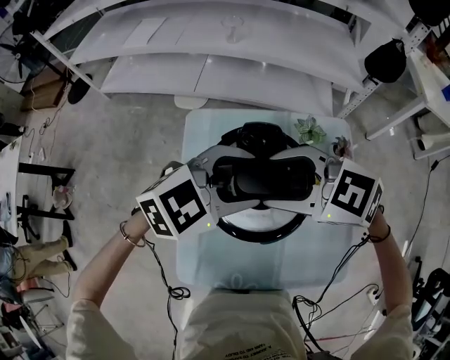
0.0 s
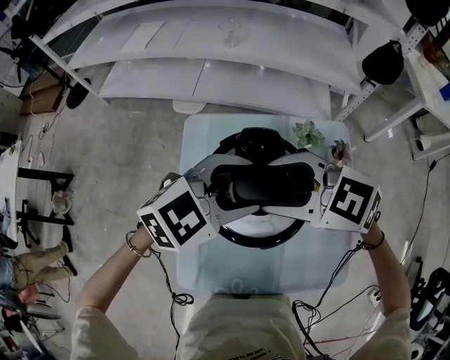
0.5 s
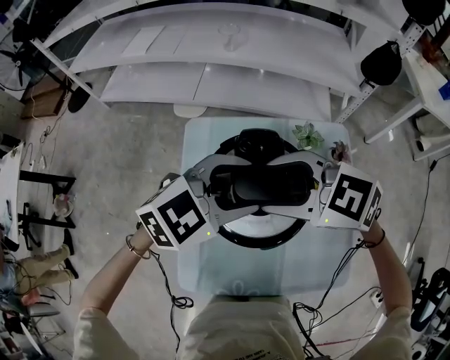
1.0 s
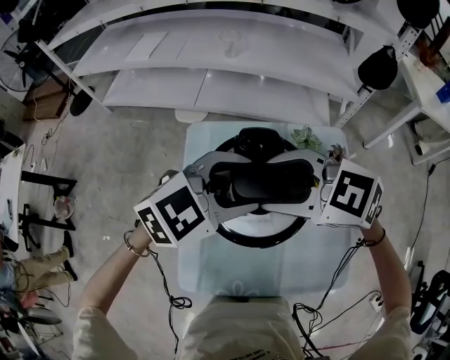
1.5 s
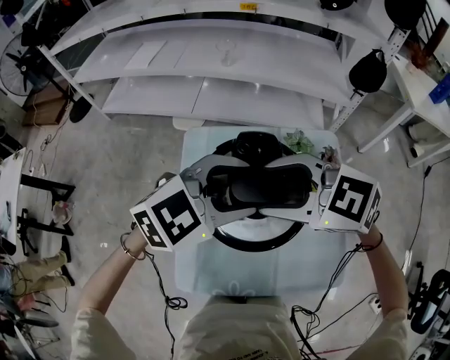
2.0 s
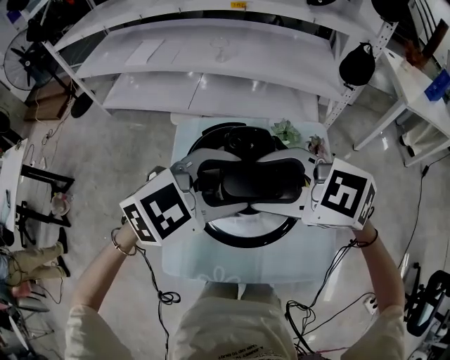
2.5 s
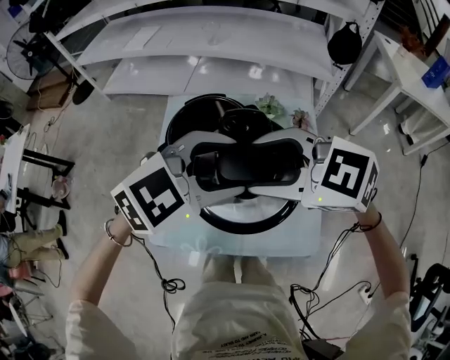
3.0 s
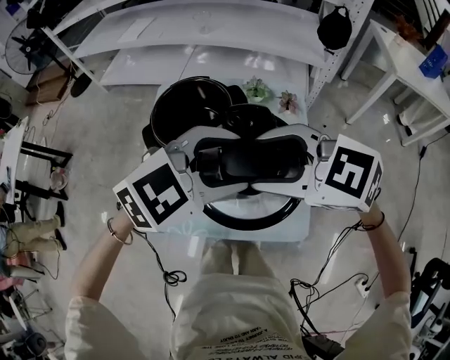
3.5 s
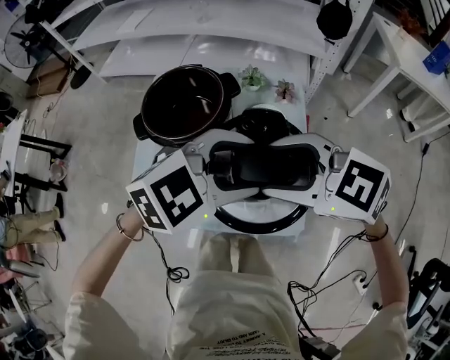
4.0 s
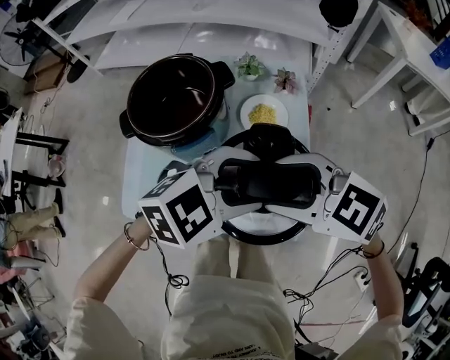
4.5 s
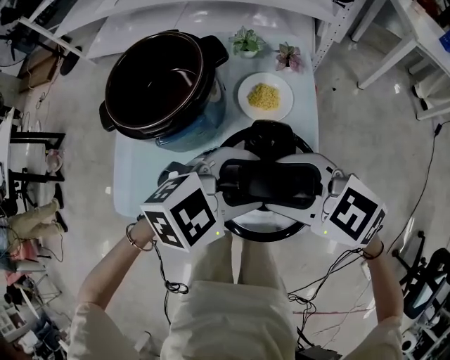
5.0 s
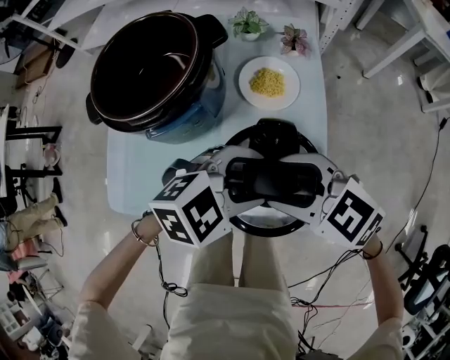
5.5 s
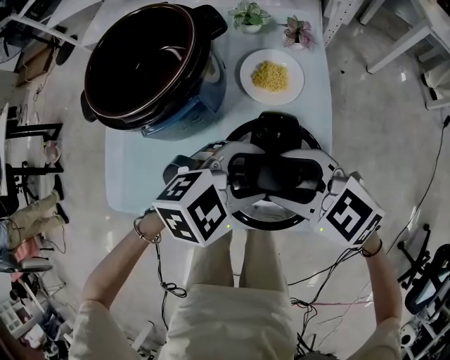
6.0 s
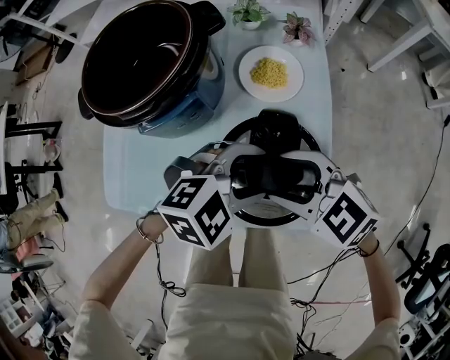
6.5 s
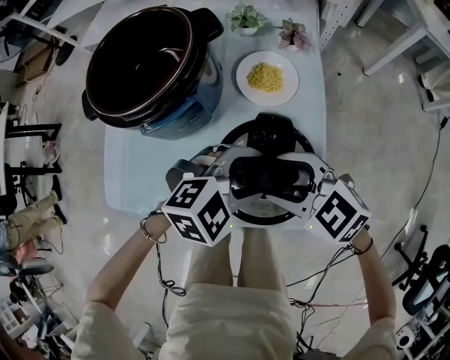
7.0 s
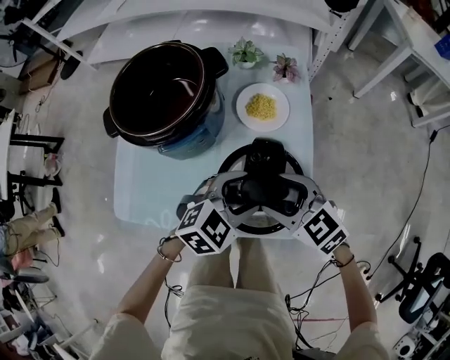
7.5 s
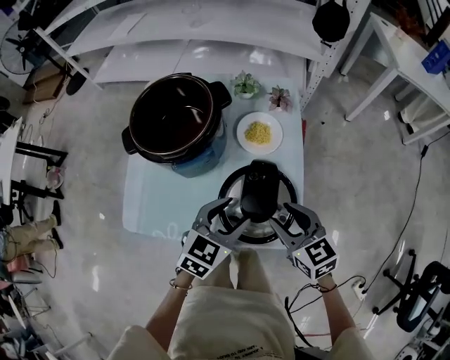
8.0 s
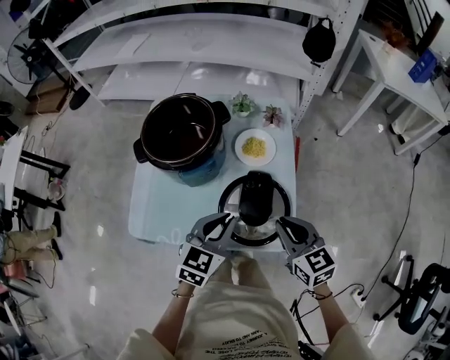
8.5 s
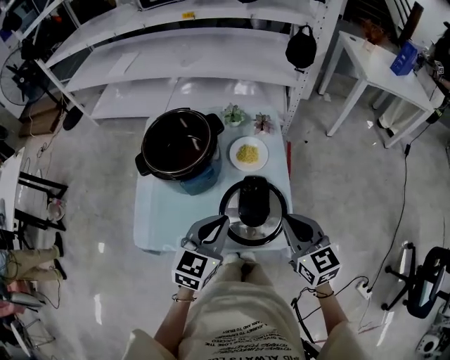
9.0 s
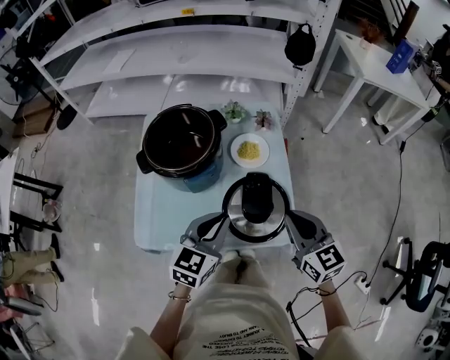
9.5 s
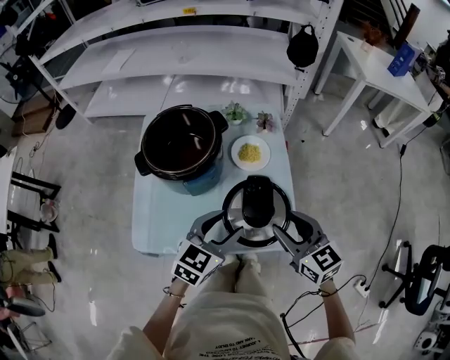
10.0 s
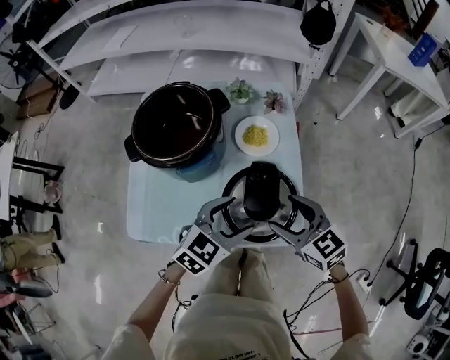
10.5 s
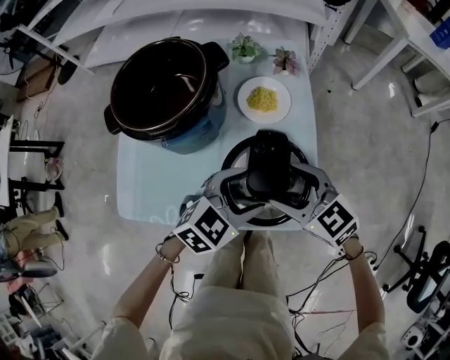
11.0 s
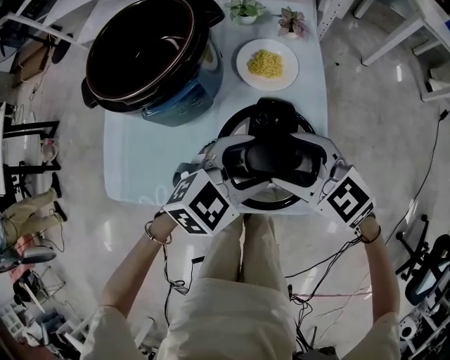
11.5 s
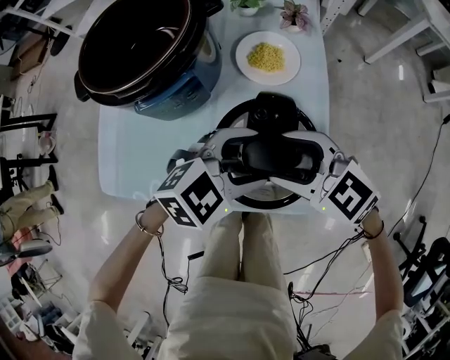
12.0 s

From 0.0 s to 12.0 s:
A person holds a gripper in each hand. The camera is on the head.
From 0.0 s to 2.0 s: The right gripper moves approximately 5 cm. The left gripper moves roughly 5 cm.
From 2.0 s to 4.0 s: The right gripper shifts by some 25 cm. The left gripper ends up some 25 cm from where it was.
From 4.0 s to 6.0 s: The grippers both shift downward by about 20 cm.
From 6.0 s to 8.0 s: The left gripper ends up roughly 5 cm from where it was, and turns by some 40 degrees. Meanwhile the right gripper changes place by some 5 cm, and turns by roughly 40 degrees.
From 8.0 s to 10.0 s: The grippers both shift upward by about 5 cm. The right gripper closes, then reopens, while the left gripper closes and opens again.
From 10.0 s to 12.0 s: Both grippers move downward, some 10 cm. The right gripper changes its angle by approximately 40 degrees, and opens; the left gripper rotates about 30 degrees.

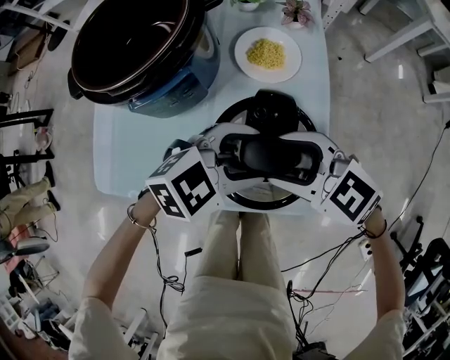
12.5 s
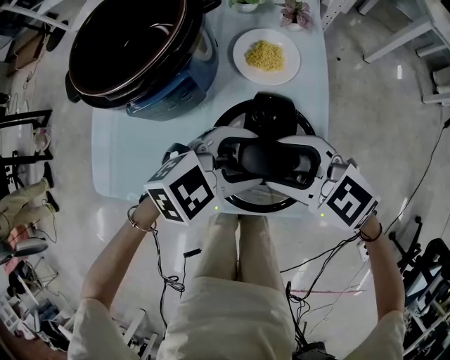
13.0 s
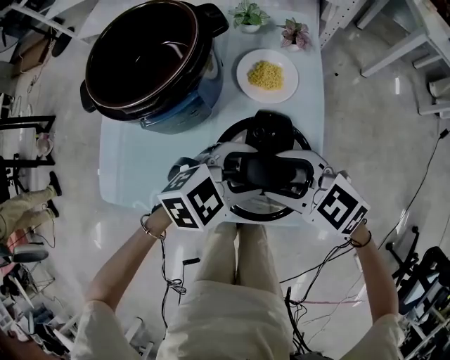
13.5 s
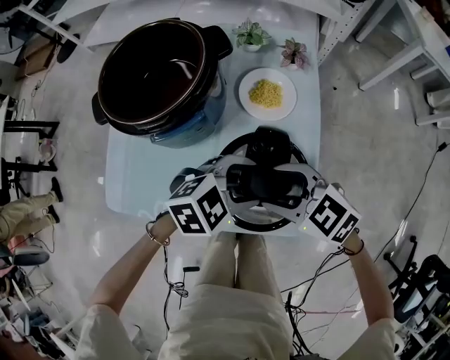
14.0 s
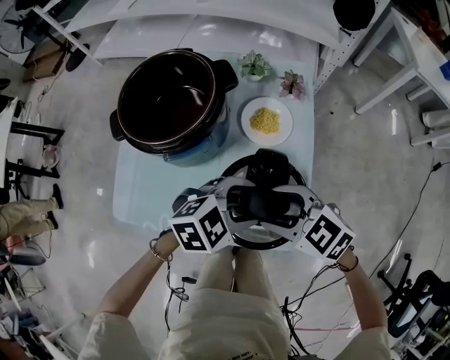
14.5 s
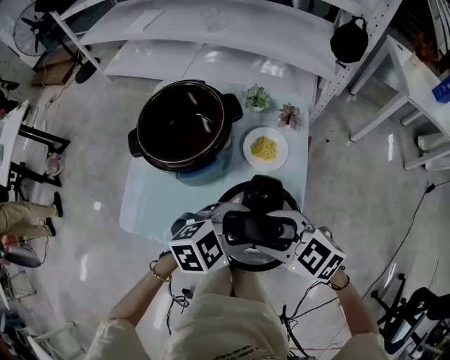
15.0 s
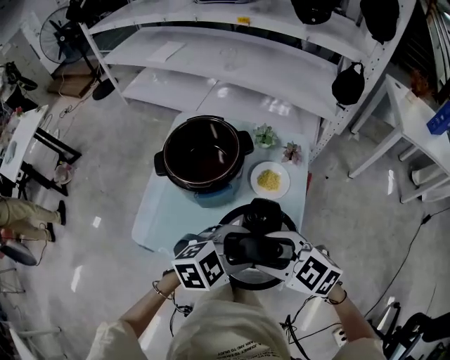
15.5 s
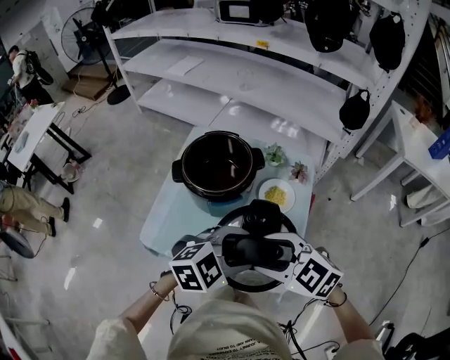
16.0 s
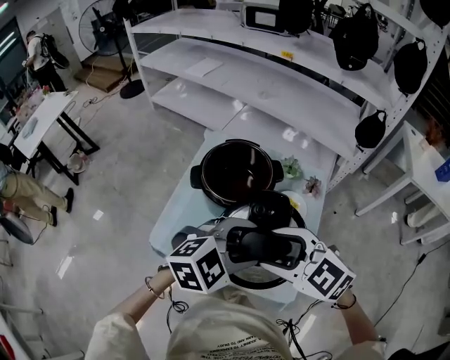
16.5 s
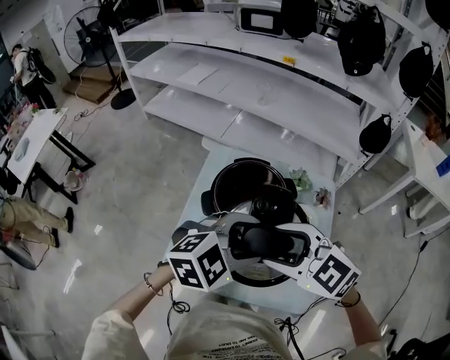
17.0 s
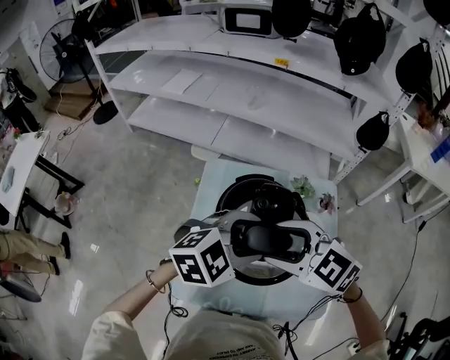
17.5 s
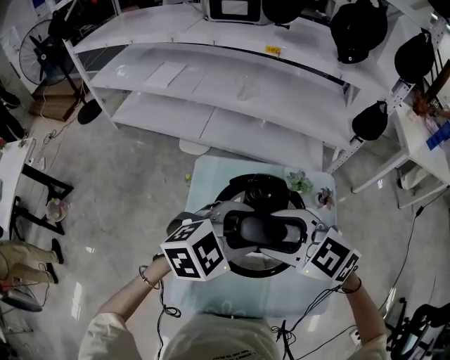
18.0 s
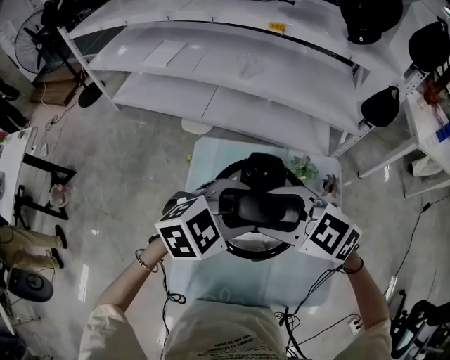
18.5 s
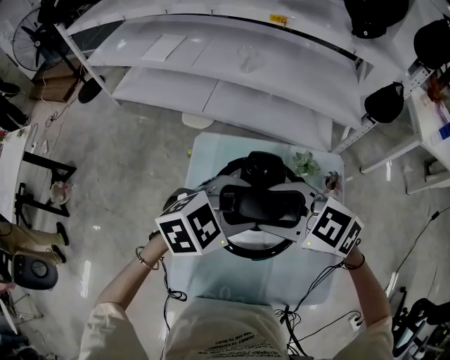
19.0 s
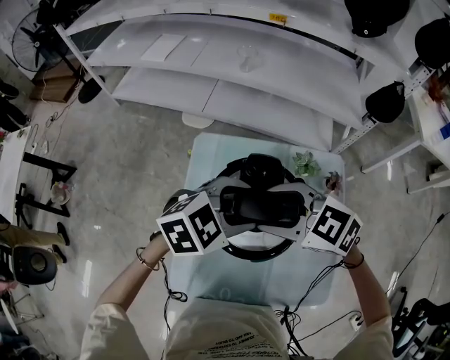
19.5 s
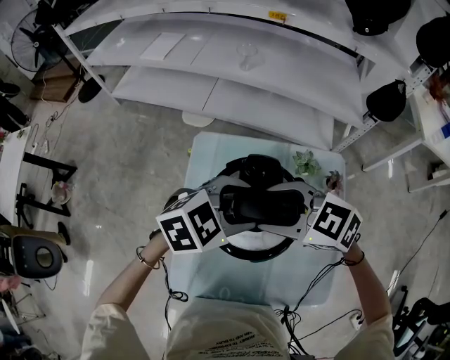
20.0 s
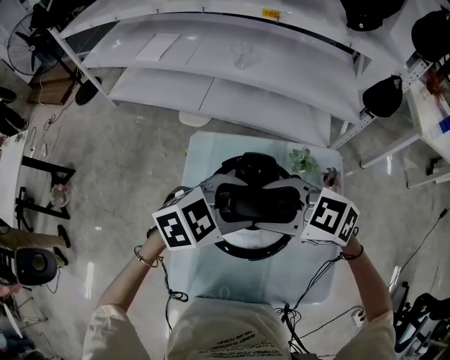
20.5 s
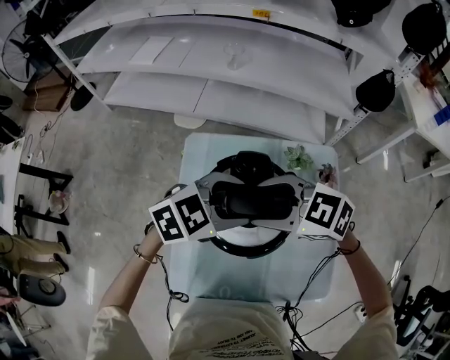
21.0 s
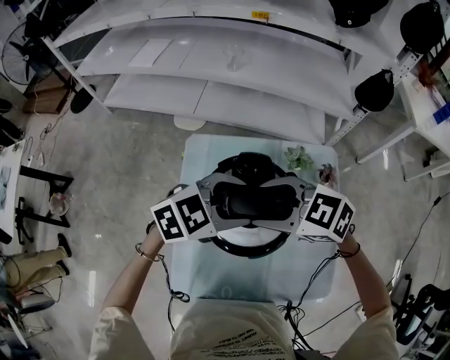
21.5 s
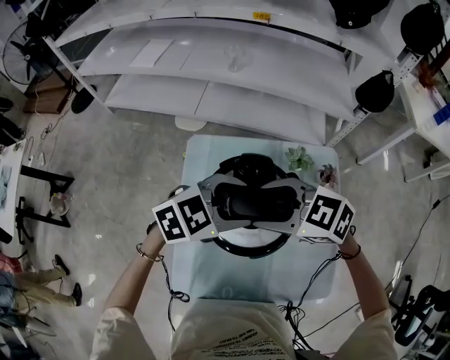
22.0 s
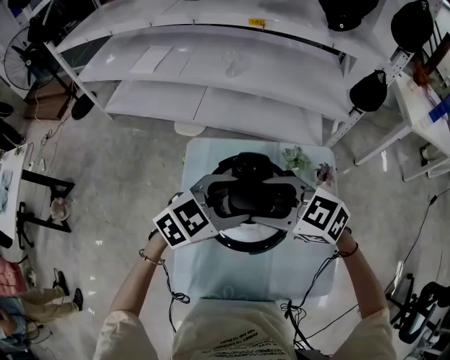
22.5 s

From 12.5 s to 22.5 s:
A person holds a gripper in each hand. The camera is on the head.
From 12.5 s to 14.5 s: The grippers stay close to where they were, moving slightly.
From 14.5 s to 16.5 s: The grippers both shift upward by some 20 cm. The right gripper changes its angle by some 20 degrees.
From 16.5 s to 18.5 s: The right gripper changes place by approximately 25 cm; the left gripper ends up about 25 cm from where it was.
From 18.5 s to 22.5 s: The grippers move only a little.

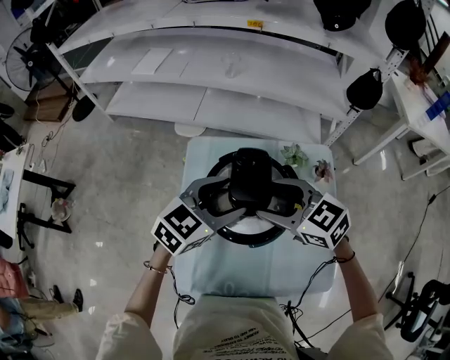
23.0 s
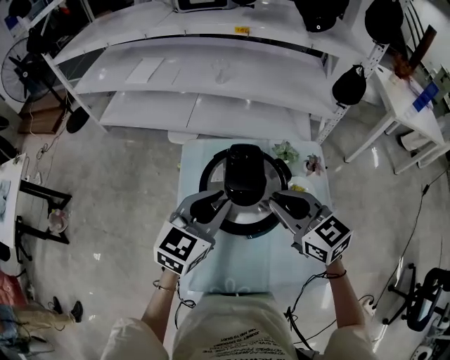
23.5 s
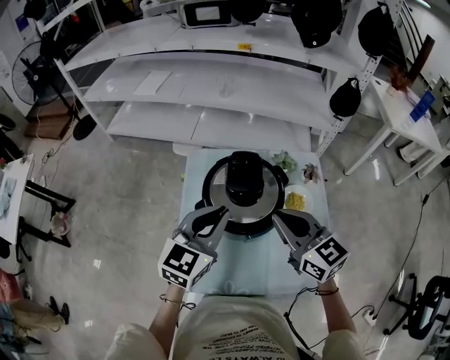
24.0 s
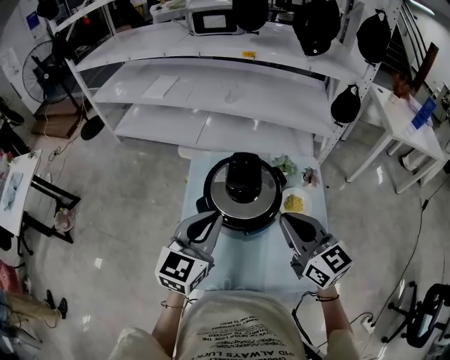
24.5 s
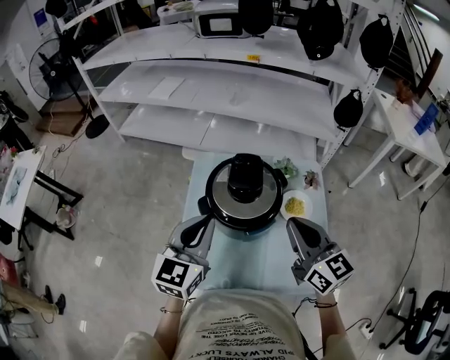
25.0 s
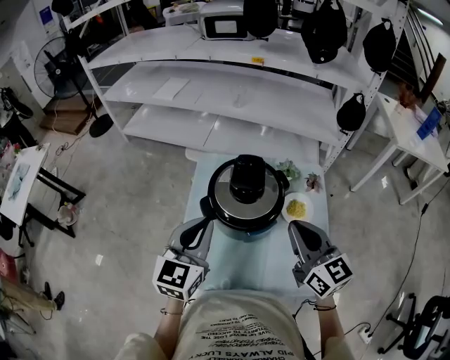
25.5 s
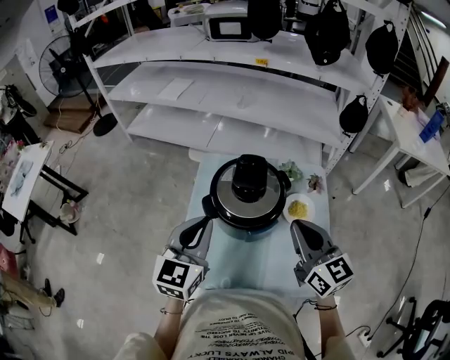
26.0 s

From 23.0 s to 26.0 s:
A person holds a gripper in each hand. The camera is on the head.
From 23.0 s to 24.5 s: The left gripper goes approximately 10 cm backward and upward, changes its angle by about 30 degrees, and closes, while the right gripper shifts some 15 cm backward, upward and to the right, changes its angle by some 30 degrees, and closes its fingers.
From 24.5 s to 26.0 s: The grippers stay close to where they were, moving slightly.

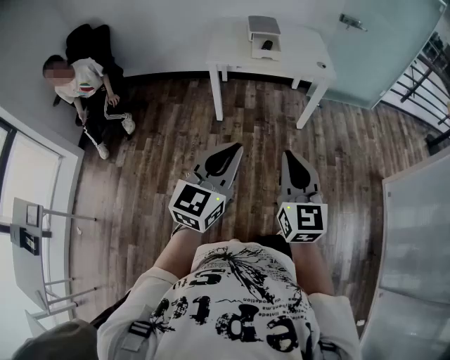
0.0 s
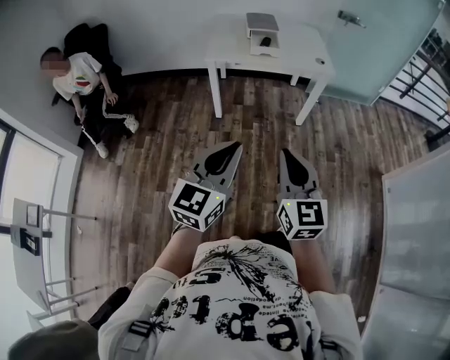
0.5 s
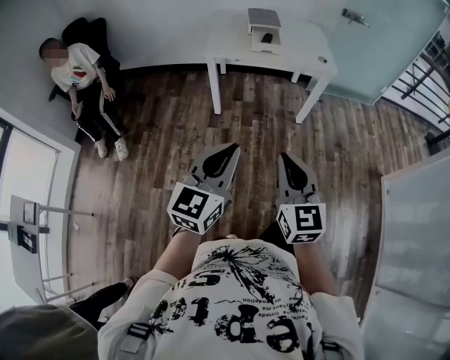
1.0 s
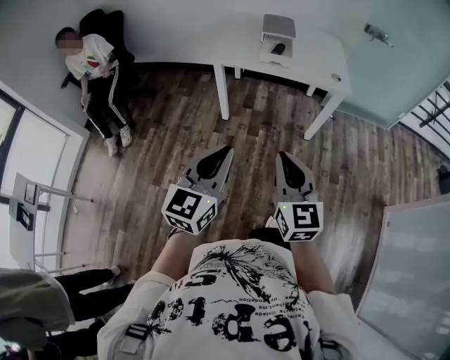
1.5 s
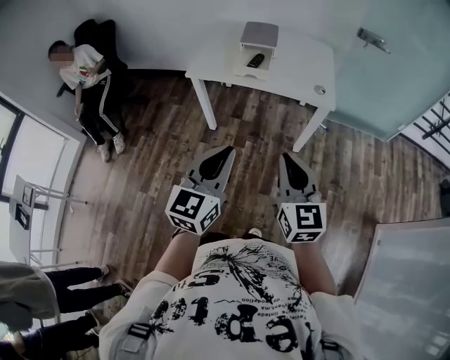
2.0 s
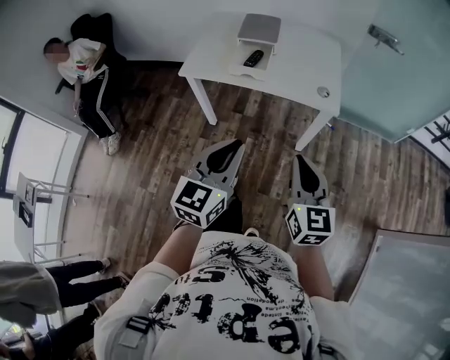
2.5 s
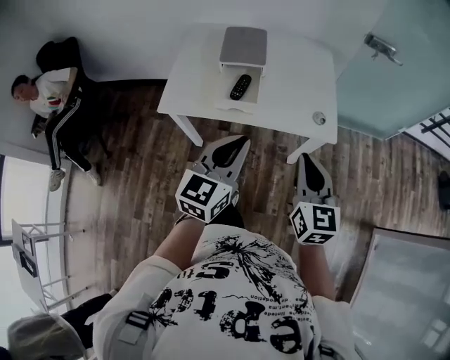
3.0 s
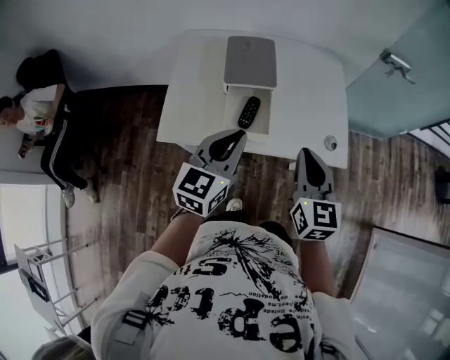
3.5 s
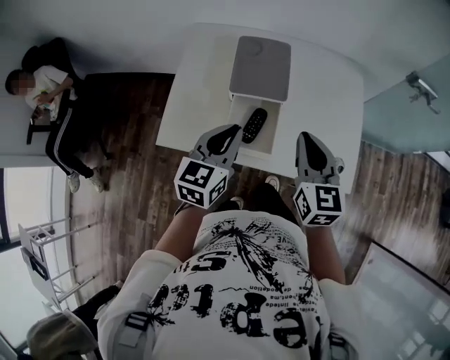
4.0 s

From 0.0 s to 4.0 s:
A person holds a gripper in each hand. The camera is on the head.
From 0.0 s to 2.0 s: The grippers both shift forward and to the right by approximately 30 cm.
From 2.0 s to 4.0 s: The pair of grippers is taken forward, some 50 cm.
